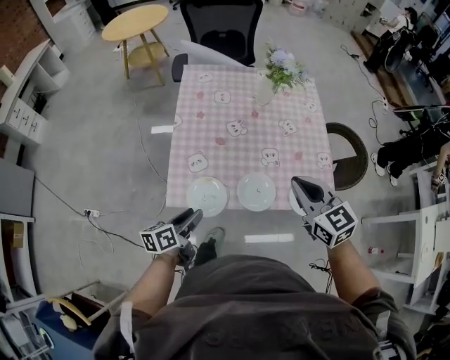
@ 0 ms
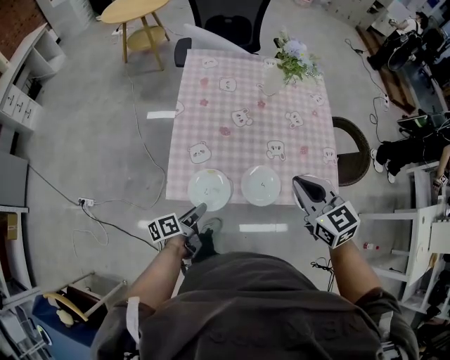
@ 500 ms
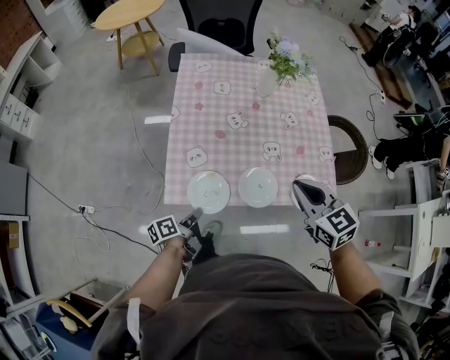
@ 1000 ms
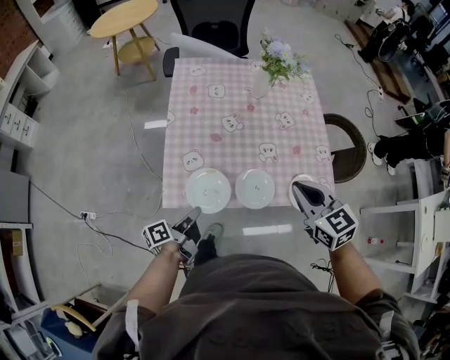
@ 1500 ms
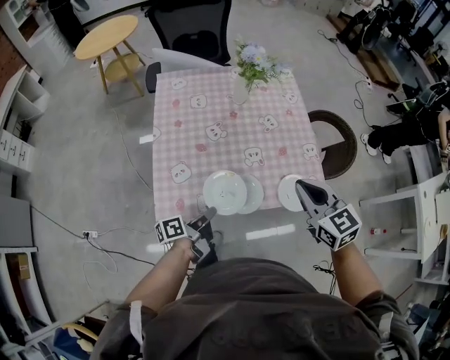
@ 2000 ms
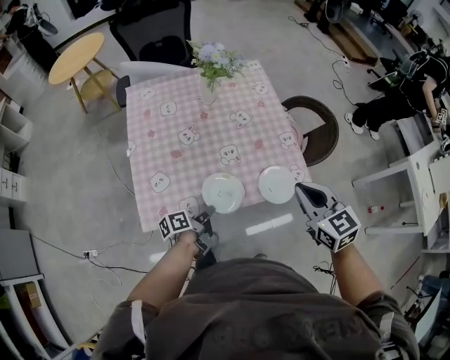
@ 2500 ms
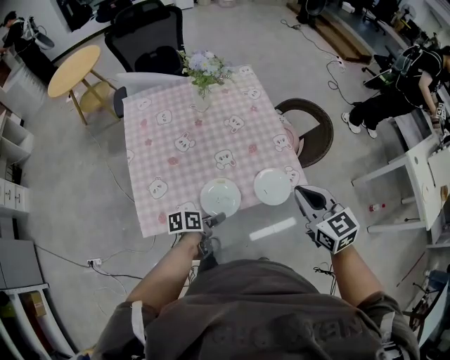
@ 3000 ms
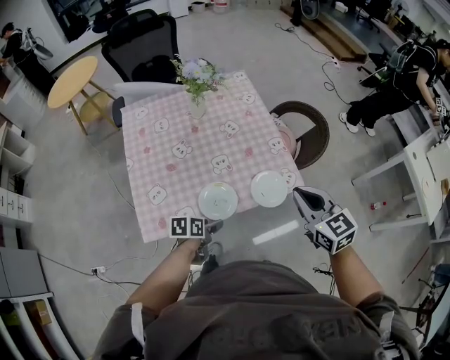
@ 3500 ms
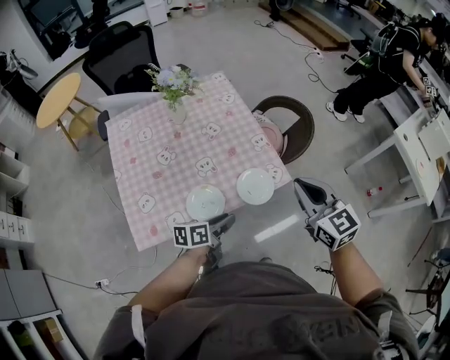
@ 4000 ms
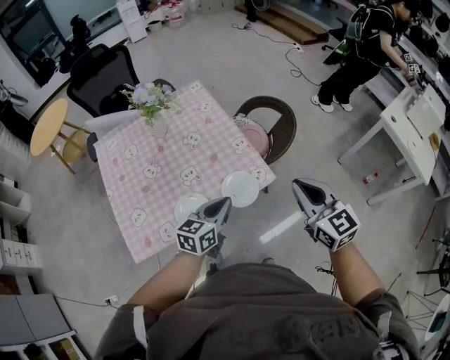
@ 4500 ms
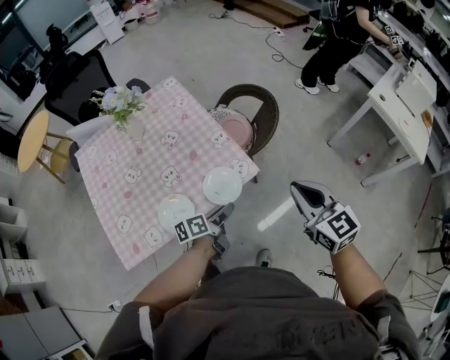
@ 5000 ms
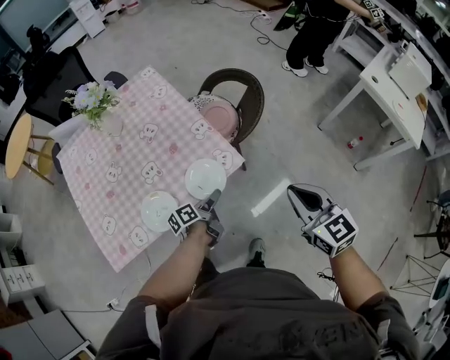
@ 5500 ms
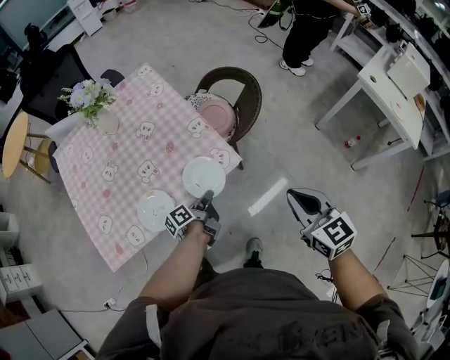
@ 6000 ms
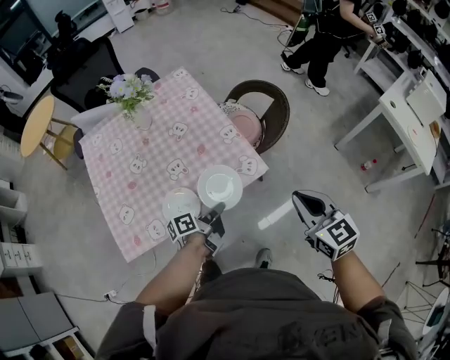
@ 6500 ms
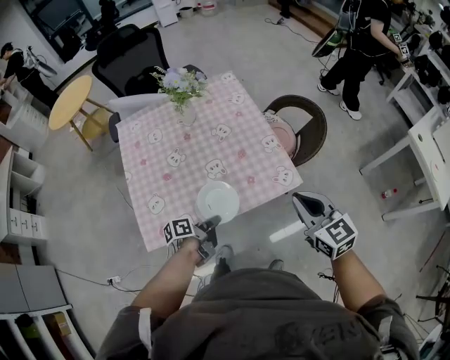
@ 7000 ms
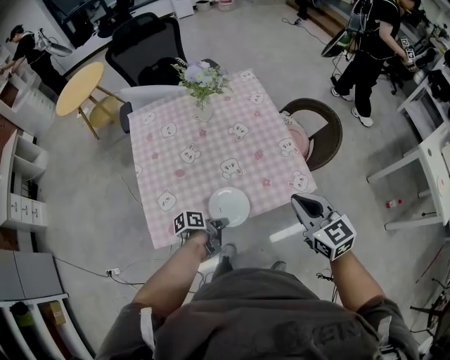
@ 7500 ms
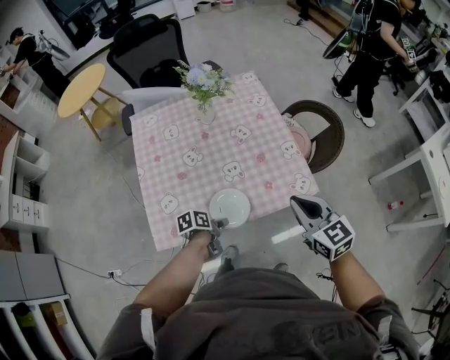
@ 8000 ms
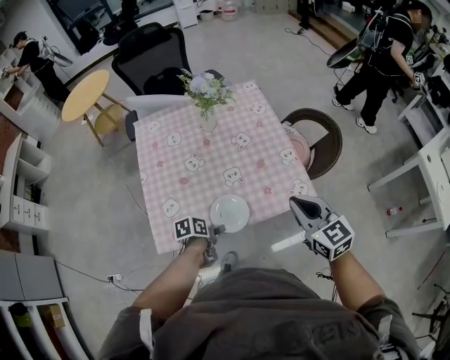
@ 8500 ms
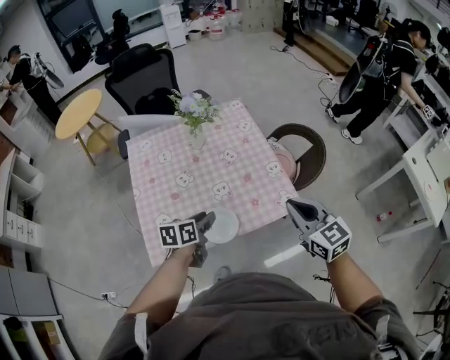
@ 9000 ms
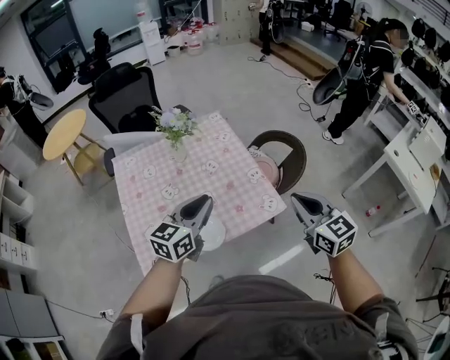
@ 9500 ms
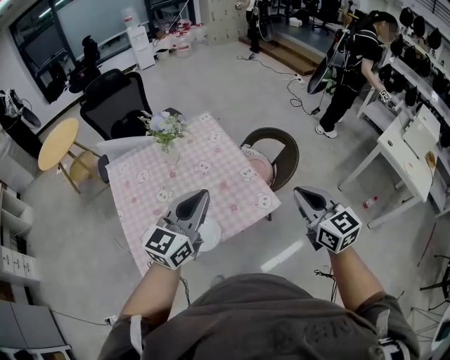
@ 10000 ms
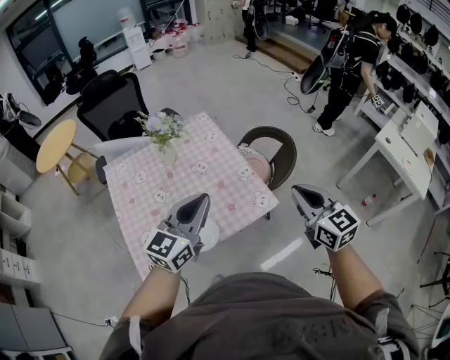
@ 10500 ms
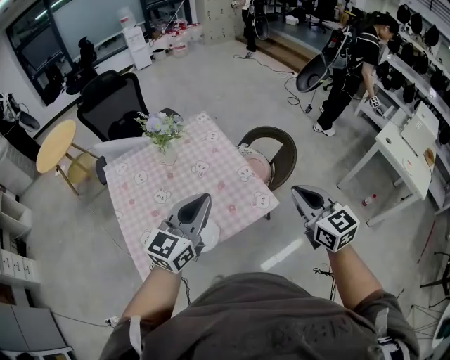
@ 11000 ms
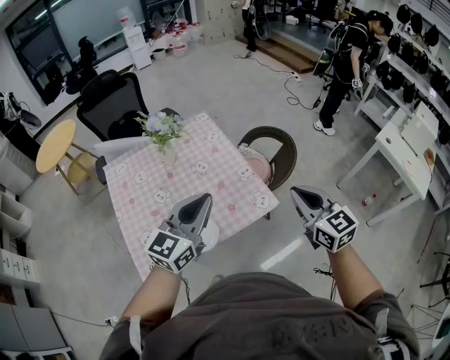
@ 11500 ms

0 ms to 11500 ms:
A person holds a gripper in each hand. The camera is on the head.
0 ms to 2000 ms: The left gripper shifts approximately 10 cm to the right, changes its angle by some 30 degrees, and closes up; the right gripper heads to the right, covering roughly 5 cm.
2000 ms to 4000 ms: Both grippers move to the right, approximately 20 cm. The left gripper rotates roughly 40 degrees, and opens its fingers.
4000 ms to 6000 ms: The right gripper travels to the right and downward by roughly 20 cm. The left gripper heads downward, to the right and forward, covering roughly 20 cm, rotates about 30 degrees, and closes up.
6000 ms to 7500 ms: The left gripper goes about 25 cm to the left and backward. The right gripper moves to the left, roughly 25 cm, and swivels roughly 20 degrees.
7500 ms to 9500 ms: The right gripper goes some 15 cm upward and to the right, while the left gripper travels upward by roughly 30 cm, rolls clockwise, seen from behind, by approximately 70 degrees, and opens and closes again.
9500 ms to 11500 ms: The left gripper heads upward, covering some 5 cm.

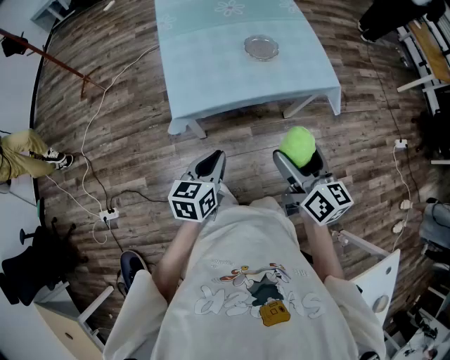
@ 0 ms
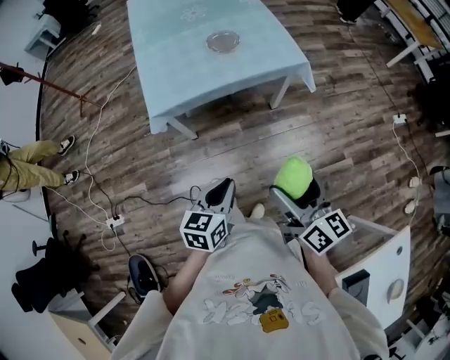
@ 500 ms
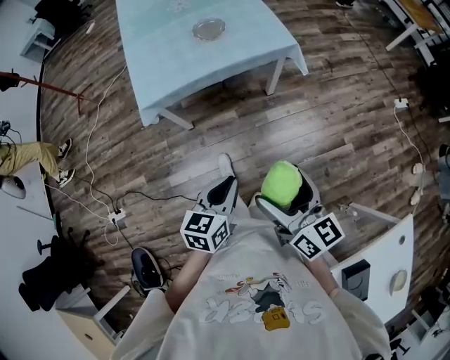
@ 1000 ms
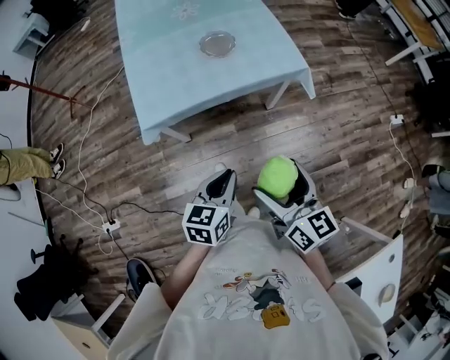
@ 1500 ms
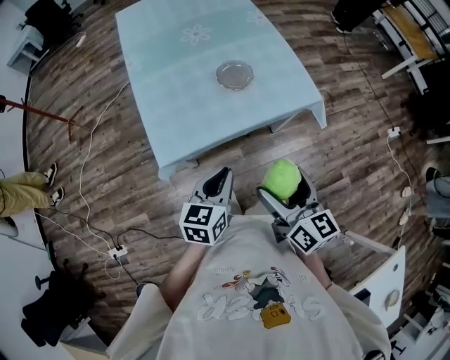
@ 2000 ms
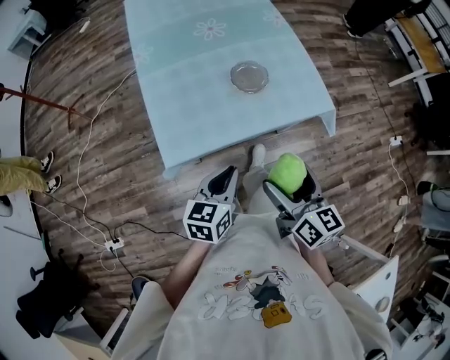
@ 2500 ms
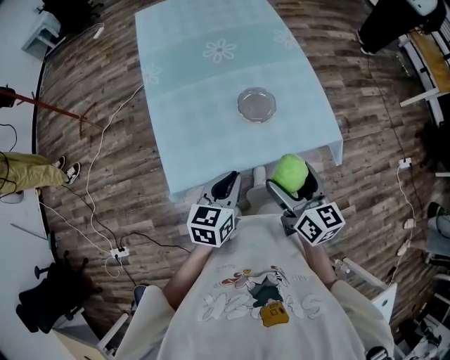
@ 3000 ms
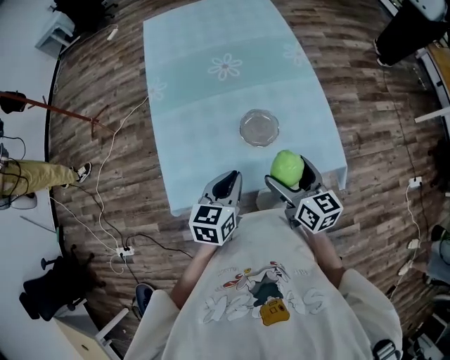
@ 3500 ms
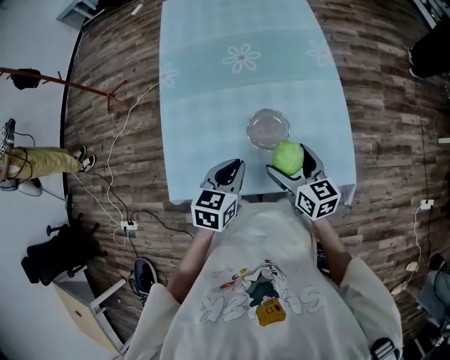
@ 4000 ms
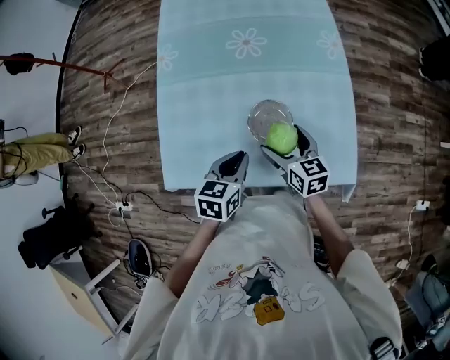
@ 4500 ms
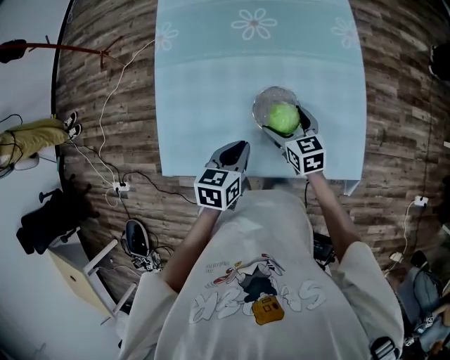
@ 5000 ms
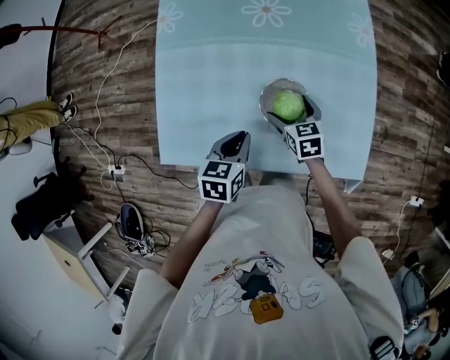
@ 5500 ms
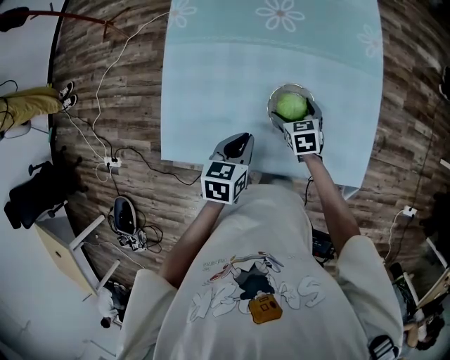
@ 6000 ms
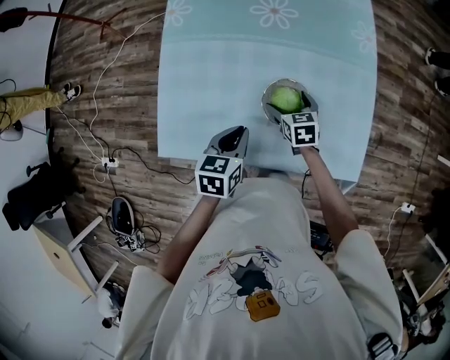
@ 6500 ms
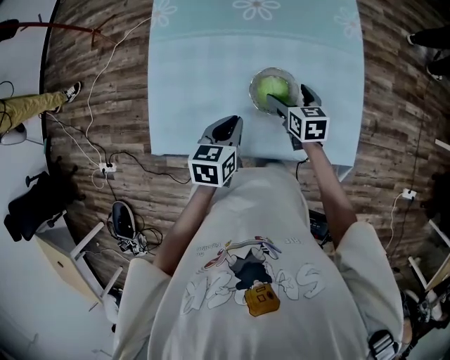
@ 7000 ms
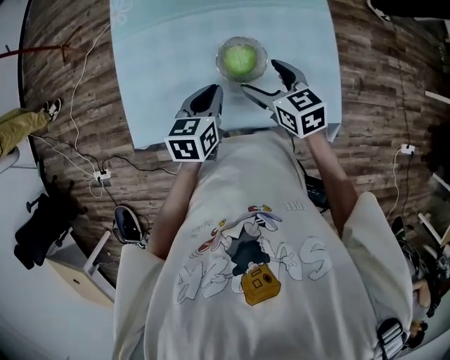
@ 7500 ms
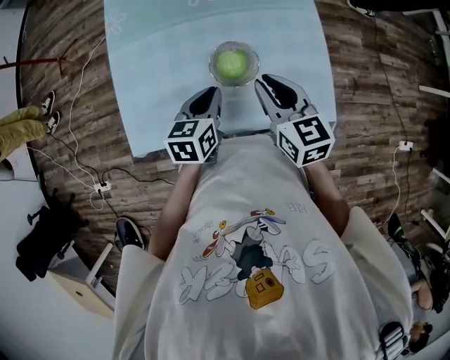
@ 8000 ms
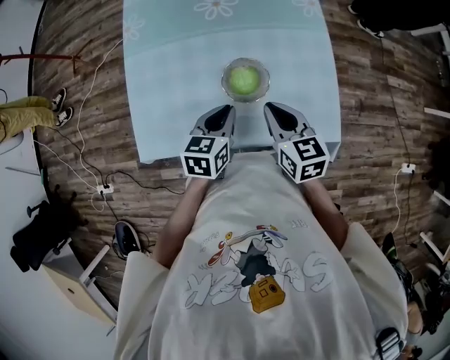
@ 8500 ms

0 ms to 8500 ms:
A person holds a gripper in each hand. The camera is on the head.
0 ms to 2000 ms: The right gripper goes backward and returns, about 20 cm each way. The left gripper travels to the right by approximately 5 cm, and goes backward and returns, some 20 cm each way.
2000 ms to 4000 ms: The two grippers go roughly 30 cm forward. The right gripper rotates some 30 degrees.
4000 ms to 6500 ms: The left gripper is displaced downward by approximately 10 cm. The right gripper goes roughly 20 cm downward and forward, and rotates some 30 degrees.
6500 ms to 8500 ms: The right gripper travels upward and backward by some 20 cm, turns by approximately 20 degrees, and closes; the left gripper travels to the right by approximately 10 cm.

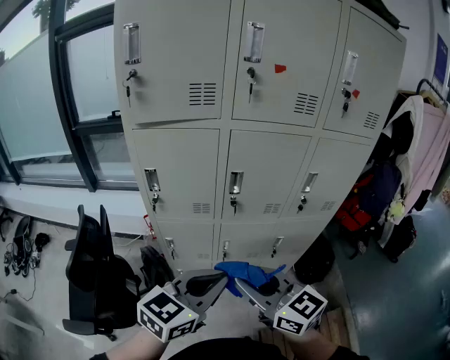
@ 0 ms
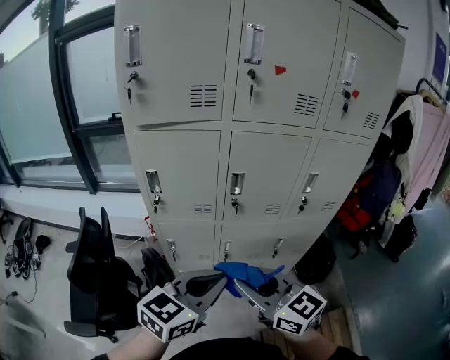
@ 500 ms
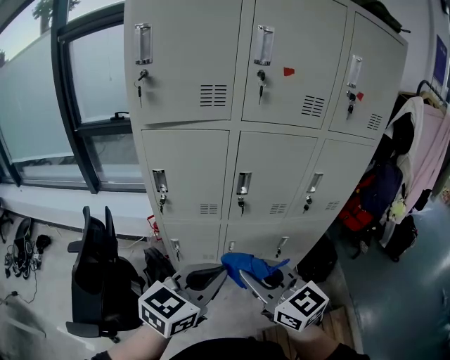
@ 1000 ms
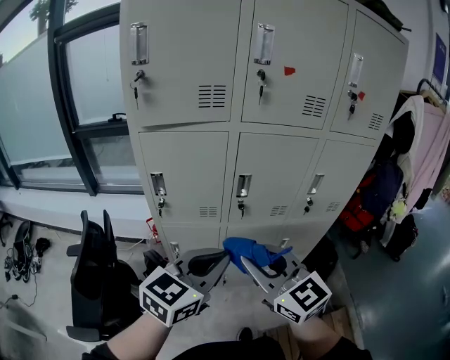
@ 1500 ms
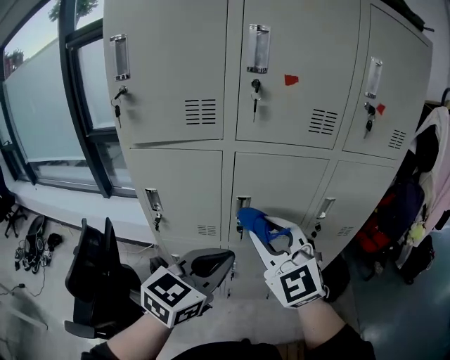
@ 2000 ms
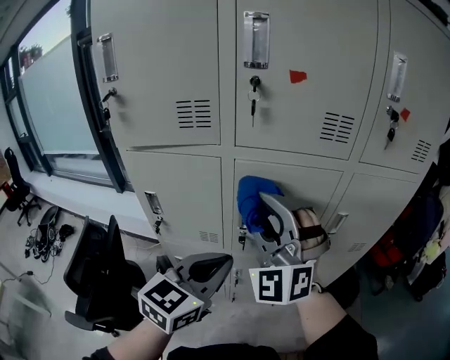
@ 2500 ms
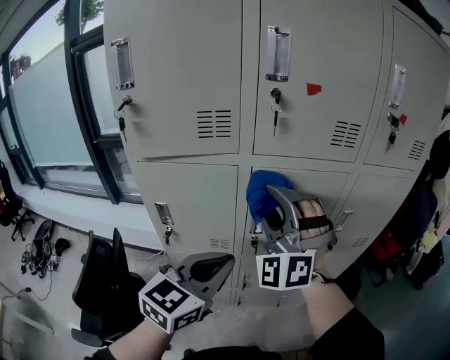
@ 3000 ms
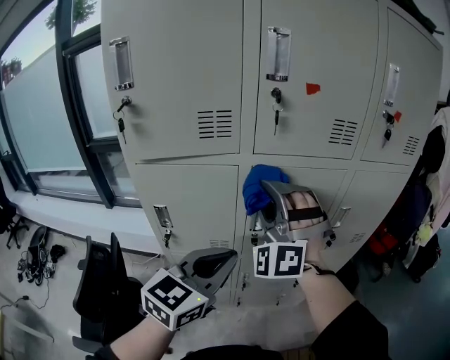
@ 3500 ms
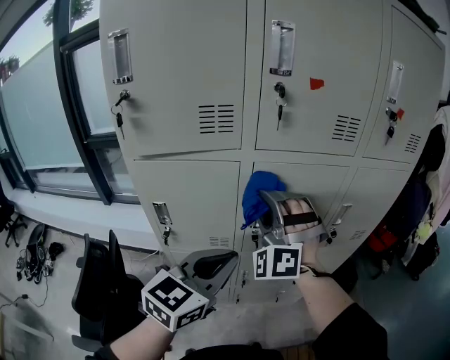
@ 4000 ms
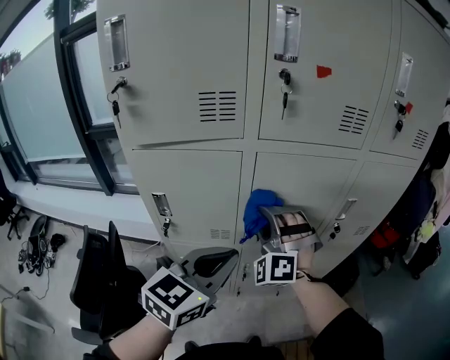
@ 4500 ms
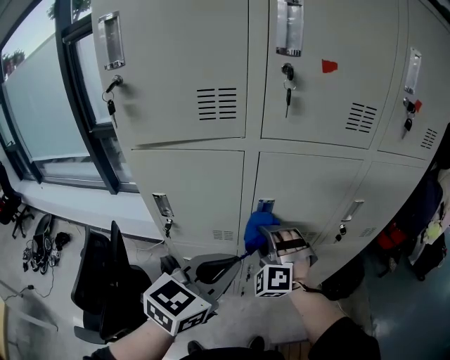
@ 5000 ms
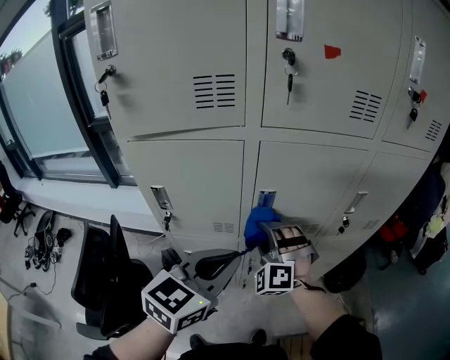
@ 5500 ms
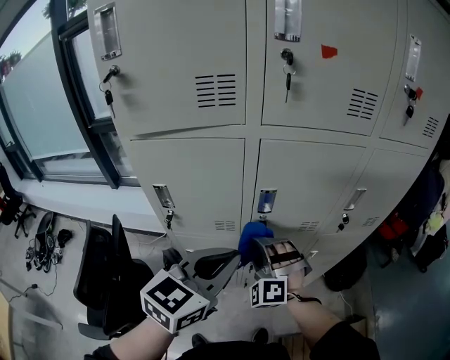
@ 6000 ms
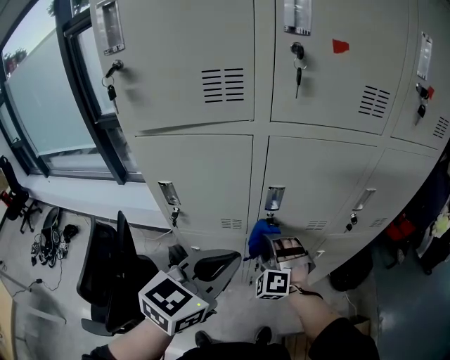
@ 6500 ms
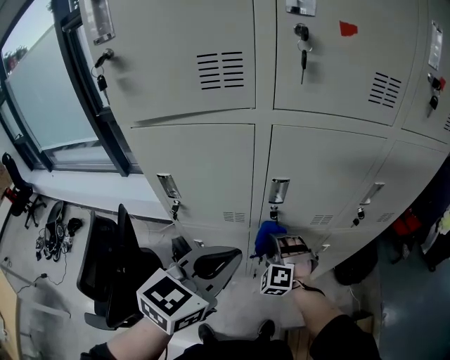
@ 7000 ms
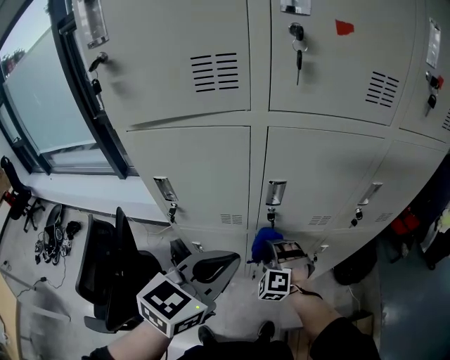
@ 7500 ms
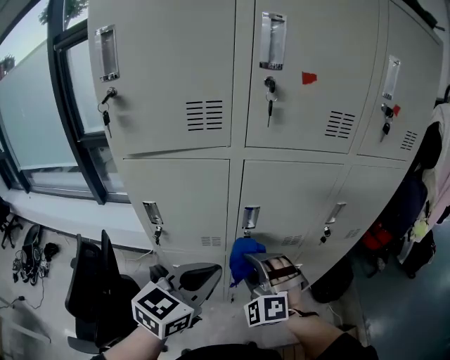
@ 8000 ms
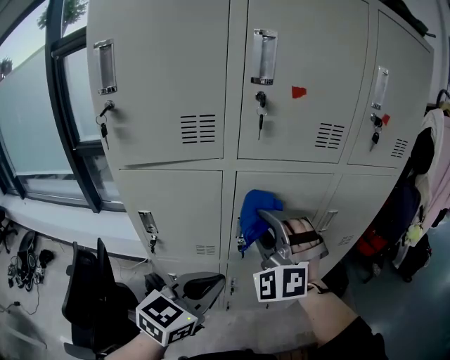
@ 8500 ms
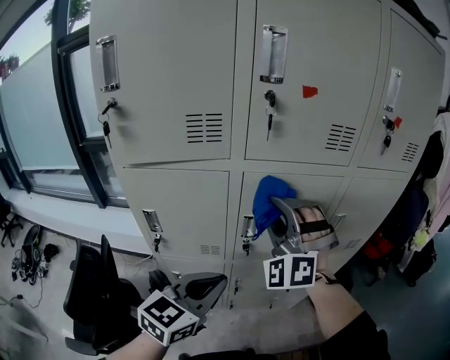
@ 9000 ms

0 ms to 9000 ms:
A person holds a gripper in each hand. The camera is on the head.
0 ms to 2000 ms: The left gripper travels forward by approximately 15 cm; the right gripper goes roughly 20 cm forward and upward, and rotates around the line of its fingers by roughly 40 degrees, counterclockwise from behind.
2000 ms to 4500 ms: The left gripper changes place by approximately 5 cm. Meanwhile the right gripper shifts about 15 cm forward, downward and to the left, and twists about 40 degrees counterclockwise, seen from behind.
4500 ms to 7000 ms: The right gripper shifts some 25 cm downward, and turns by about 20 degrees.
7000 ms to 9000 ms: The right gripper travels upward by about 35 cm, and points its fingers about 30 degrees further upward.
